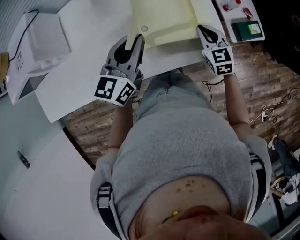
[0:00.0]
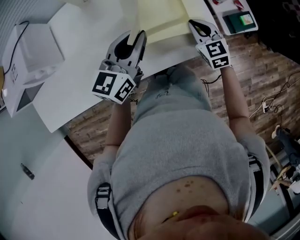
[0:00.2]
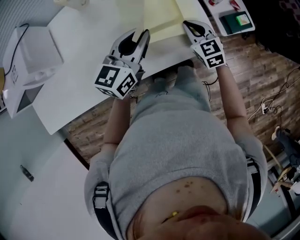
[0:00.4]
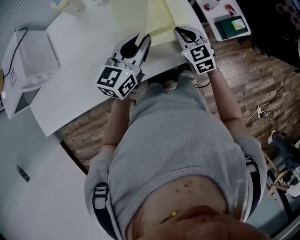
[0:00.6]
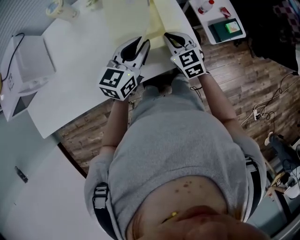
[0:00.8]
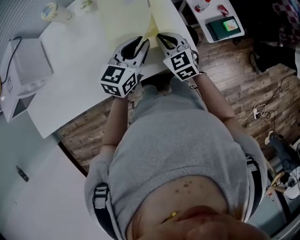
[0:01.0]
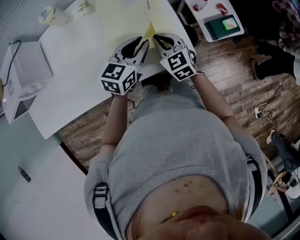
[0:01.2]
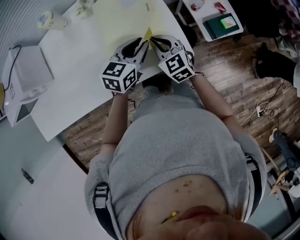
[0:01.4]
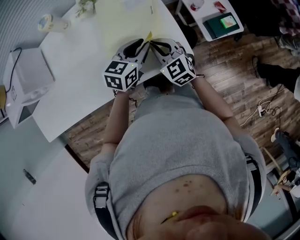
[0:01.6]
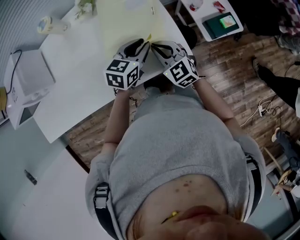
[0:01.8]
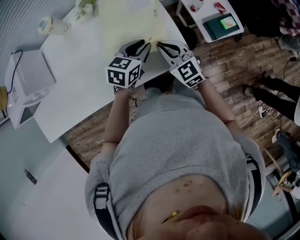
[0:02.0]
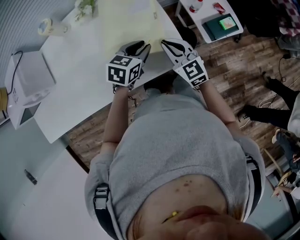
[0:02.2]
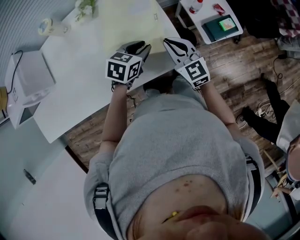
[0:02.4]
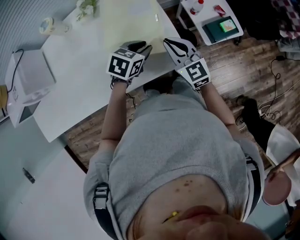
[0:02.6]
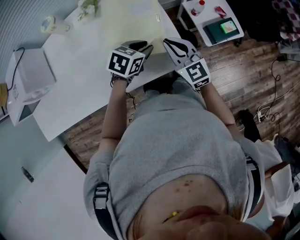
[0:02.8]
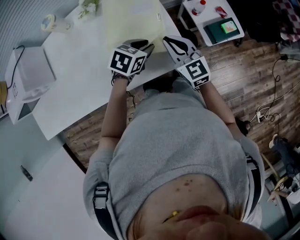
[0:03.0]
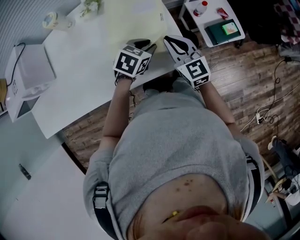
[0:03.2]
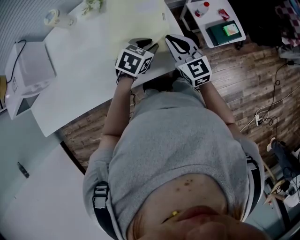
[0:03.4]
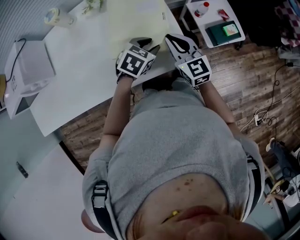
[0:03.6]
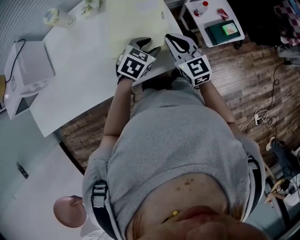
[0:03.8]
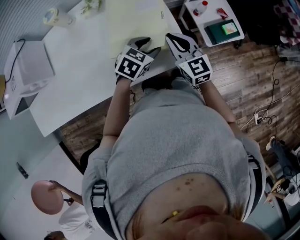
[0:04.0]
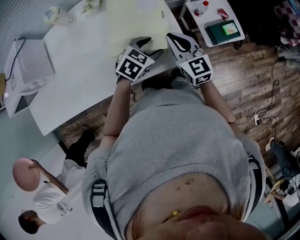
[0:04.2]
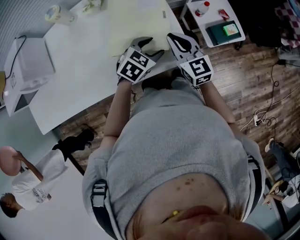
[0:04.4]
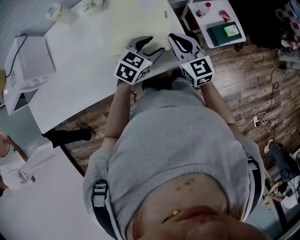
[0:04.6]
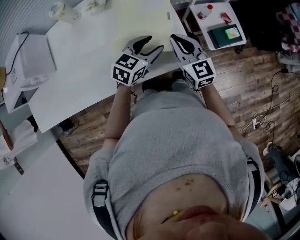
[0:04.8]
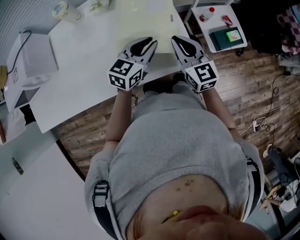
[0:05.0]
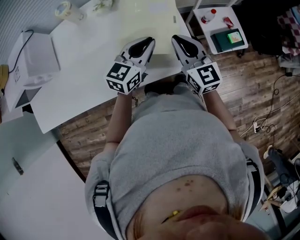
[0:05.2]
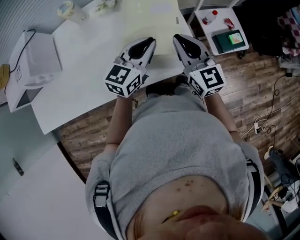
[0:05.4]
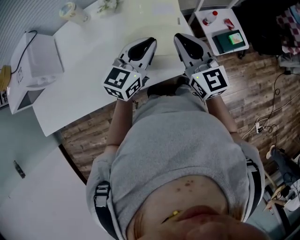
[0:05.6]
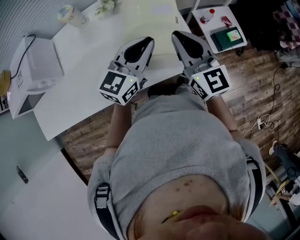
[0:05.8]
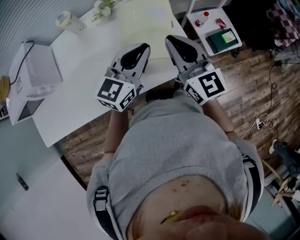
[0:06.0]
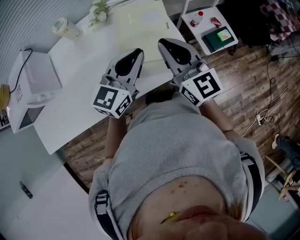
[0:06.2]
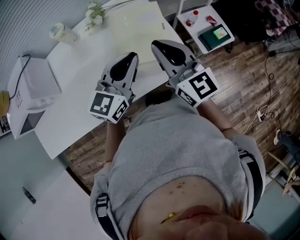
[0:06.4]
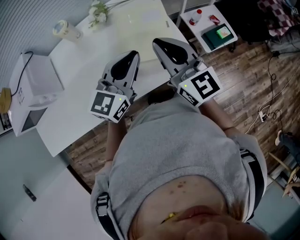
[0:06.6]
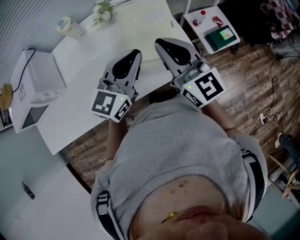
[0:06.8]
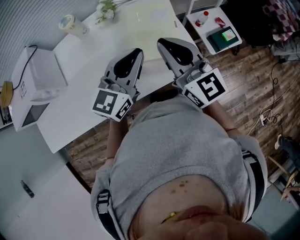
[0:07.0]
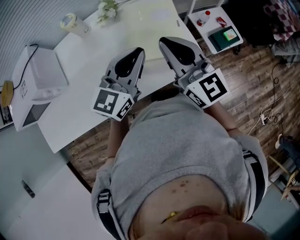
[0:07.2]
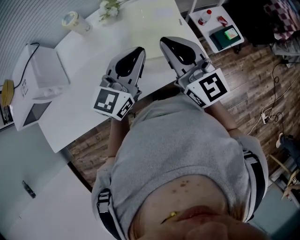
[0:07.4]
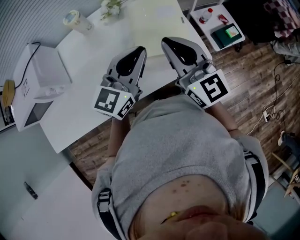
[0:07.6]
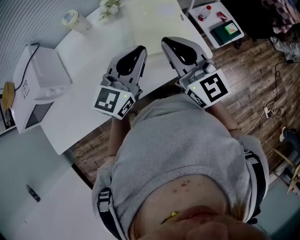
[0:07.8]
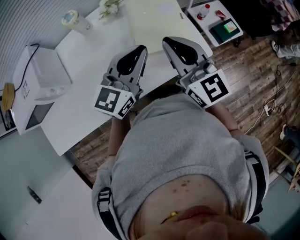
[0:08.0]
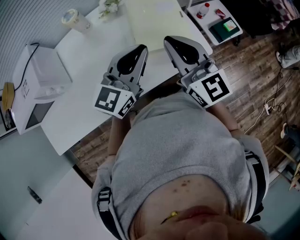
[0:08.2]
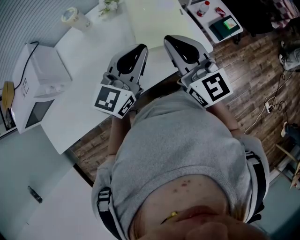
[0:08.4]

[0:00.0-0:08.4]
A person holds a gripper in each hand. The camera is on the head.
0.0 to 1.4 s: The left gripper is displaced to the right and downward by some 20 cm, and rotates about 20 degrees.
1.4 to 2.8 s: The right gripper moves to the right, about 5 cm. The left gripper ends up some 5 cm from where it was, and swivels about 30 degrees.
2.8 to 4.2 s: The left gripper opens up.
4.2 to 5.6 s: The left gripper goes roughly 15 cm upward and to the left, points its fingers approximately 40 degrees further upward, and closes its fingers, while the right gripper travels upward by some 10 cm.
5.6 to 7.0 s: Both grippers travel together upward and to the left, approximately 10 cm.
7.0 to 8.4 s: The right gripper changes place by about 5 cm.

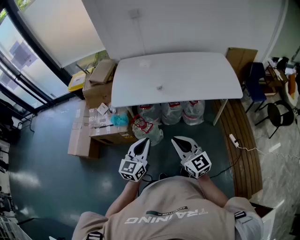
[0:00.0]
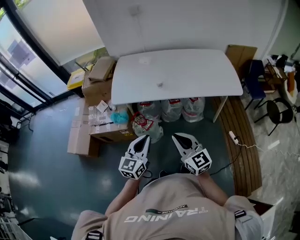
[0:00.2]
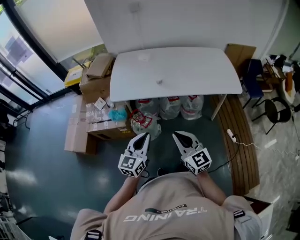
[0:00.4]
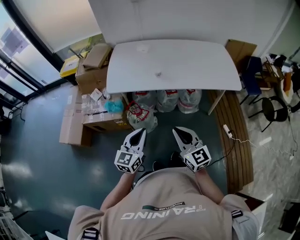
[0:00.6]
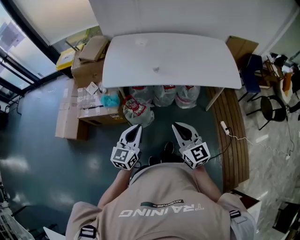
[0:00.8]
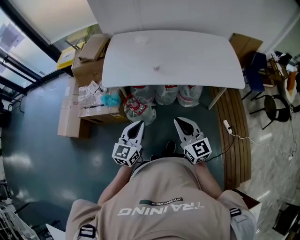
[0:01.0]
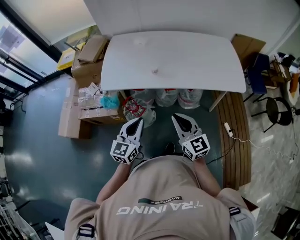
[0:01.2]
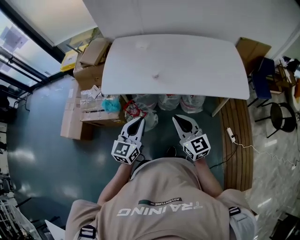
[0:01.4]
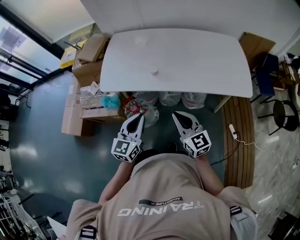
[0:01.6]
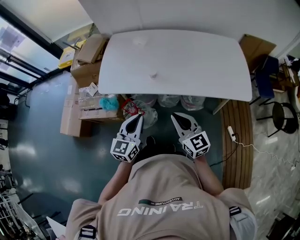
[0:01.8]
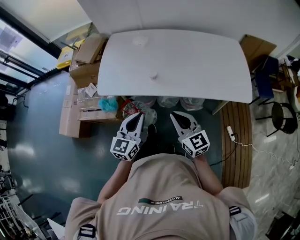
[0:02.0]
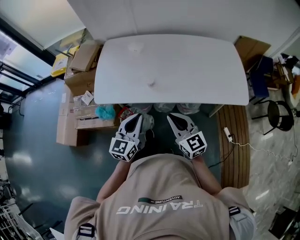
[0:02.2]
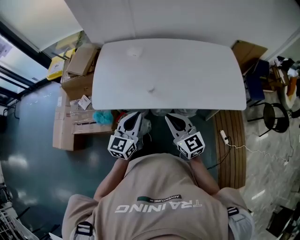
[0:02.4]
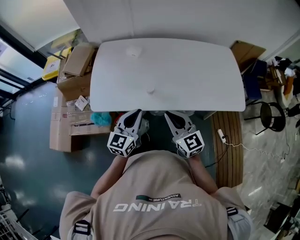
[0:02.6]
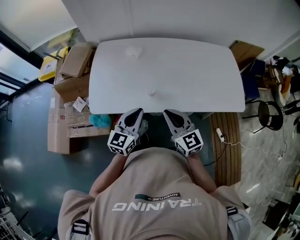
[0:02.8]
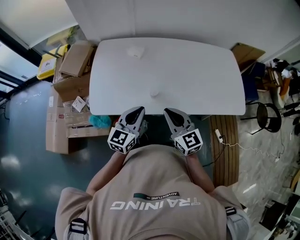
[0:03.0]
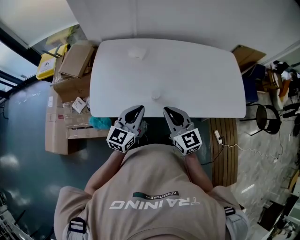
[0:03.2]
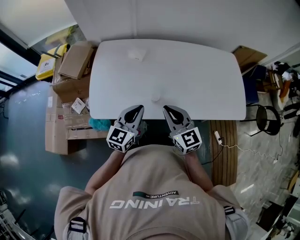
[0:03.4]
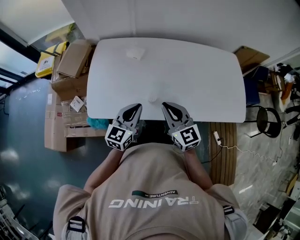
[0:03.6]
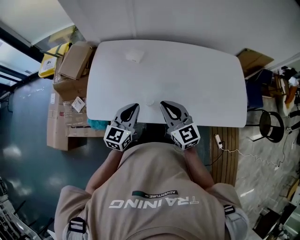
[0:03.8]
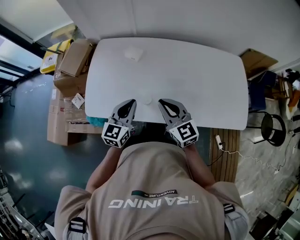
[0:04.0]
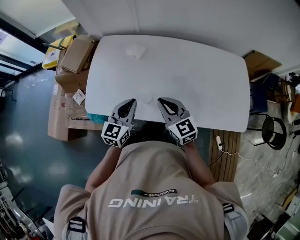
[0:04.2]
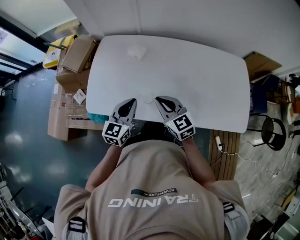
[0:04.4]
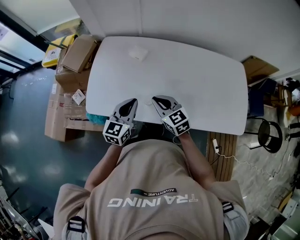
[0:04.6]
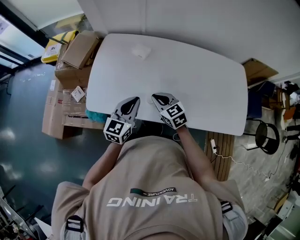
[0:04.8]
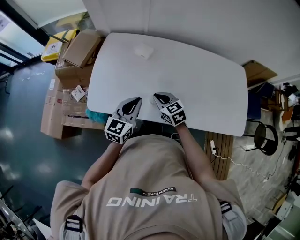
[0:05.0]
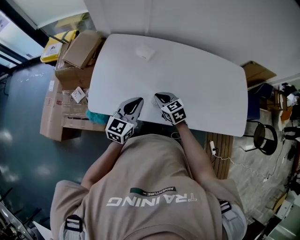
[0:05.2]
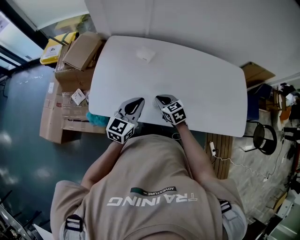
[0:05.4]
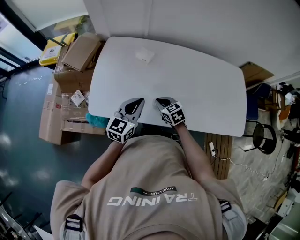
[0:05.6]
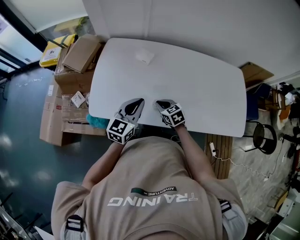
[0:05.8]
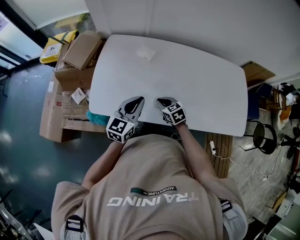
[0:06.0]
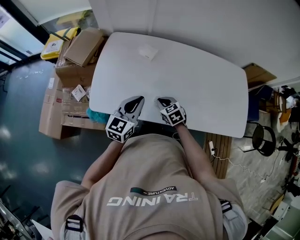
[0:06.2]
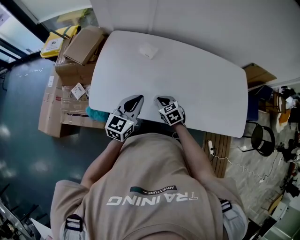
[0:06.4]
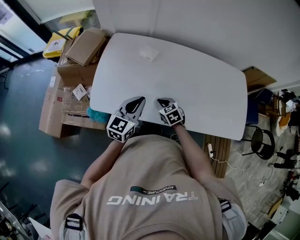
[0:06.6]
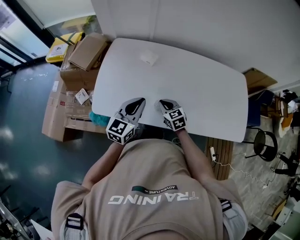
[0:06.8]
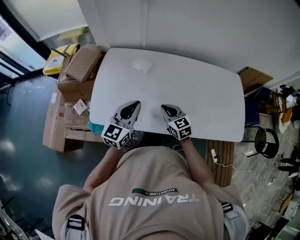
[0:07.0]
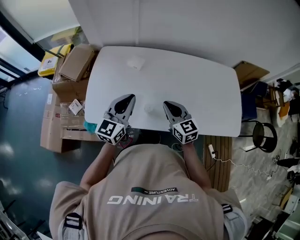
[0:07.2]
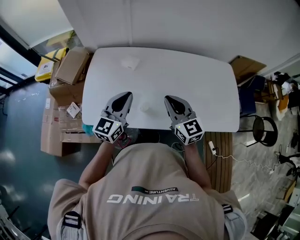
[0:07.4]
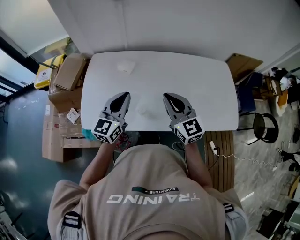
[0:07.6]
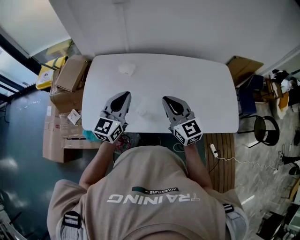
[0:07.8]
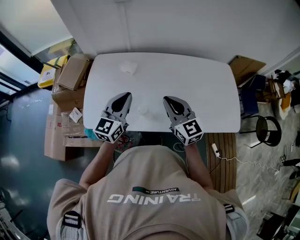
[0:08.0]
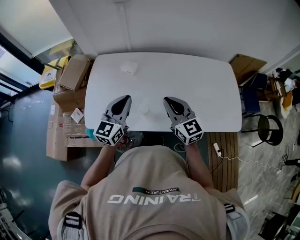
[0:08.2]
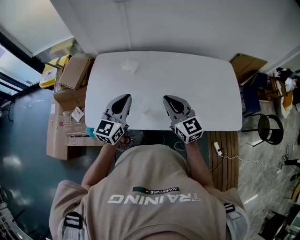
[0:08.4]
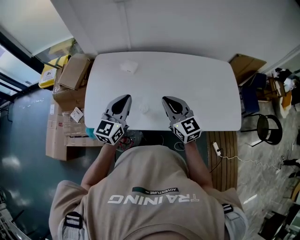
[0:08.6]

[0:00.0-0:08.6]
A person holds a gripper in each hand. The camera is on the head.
0.0 to 1.4 s: The right gripper heads forward and to the right, covering about 15 cm; the left gripper is displaced forward by about 15 cm.
1.4 to 2.8 s: Both grippers move forward, some 20 cm.
2.8 to 4.4 s: Both grippers move forward, roughly 10 cm.
4.4 to 5.8 s: The right gripper moves downward, approximately 15 cm, and rotates about 30 degrees.
5.8 to 7.2 s: The left gripper goes about 10 cm upward, while the right gripper is displaced upward by roughly 15 cm, and rotates approximately 30 degrees.
7.2 to 8.6 s: The right gripper shifts approximately 5 cm upward.

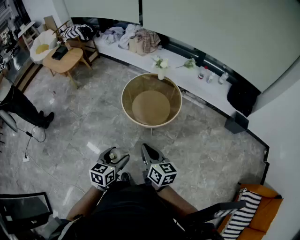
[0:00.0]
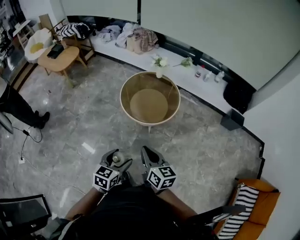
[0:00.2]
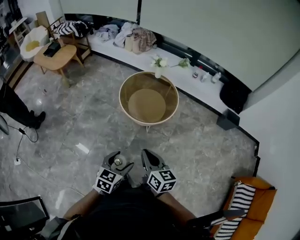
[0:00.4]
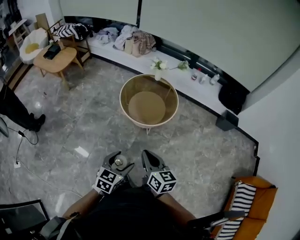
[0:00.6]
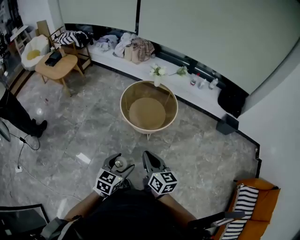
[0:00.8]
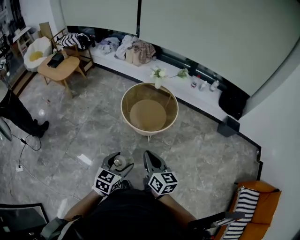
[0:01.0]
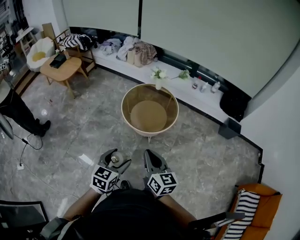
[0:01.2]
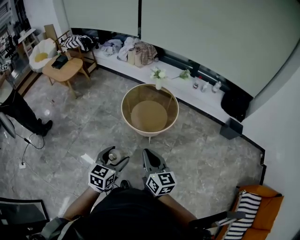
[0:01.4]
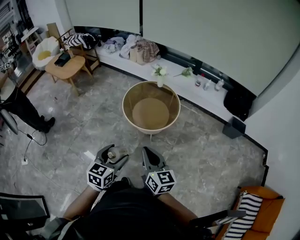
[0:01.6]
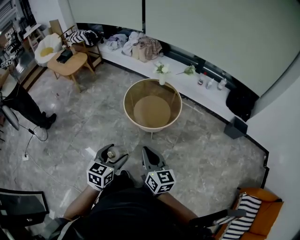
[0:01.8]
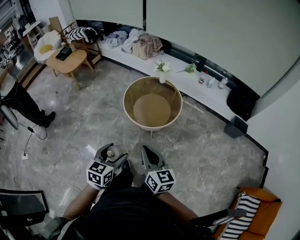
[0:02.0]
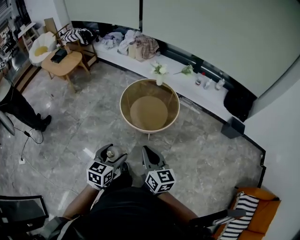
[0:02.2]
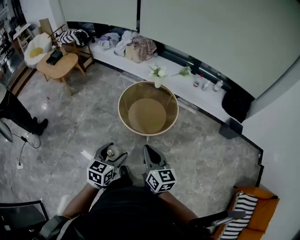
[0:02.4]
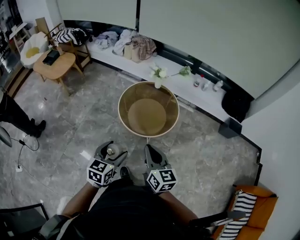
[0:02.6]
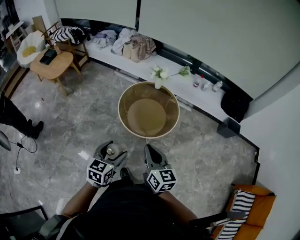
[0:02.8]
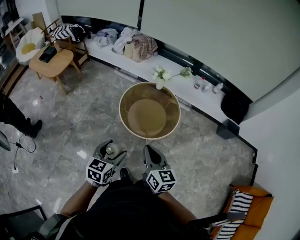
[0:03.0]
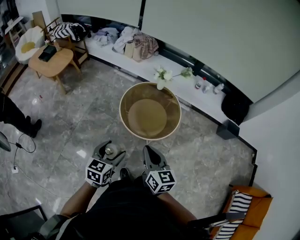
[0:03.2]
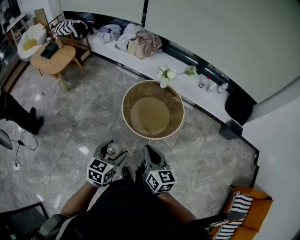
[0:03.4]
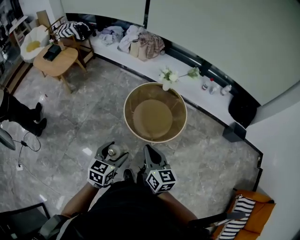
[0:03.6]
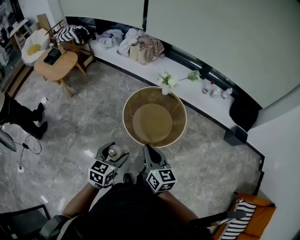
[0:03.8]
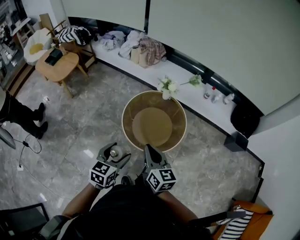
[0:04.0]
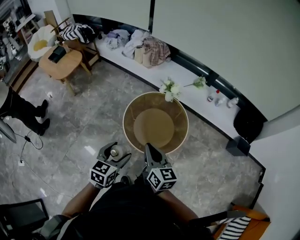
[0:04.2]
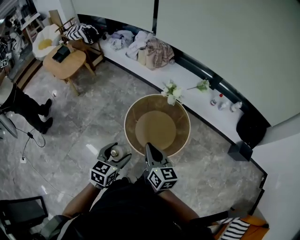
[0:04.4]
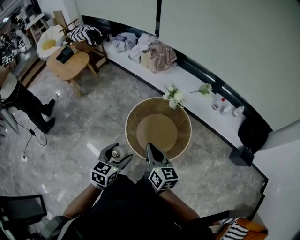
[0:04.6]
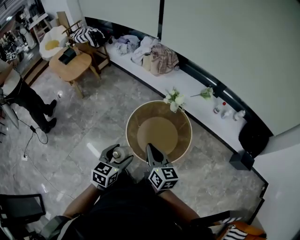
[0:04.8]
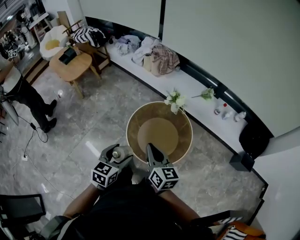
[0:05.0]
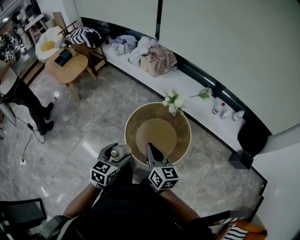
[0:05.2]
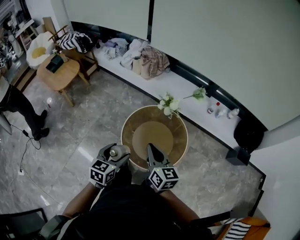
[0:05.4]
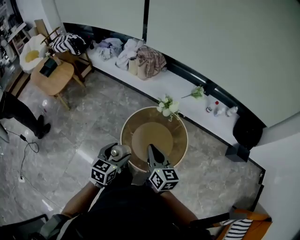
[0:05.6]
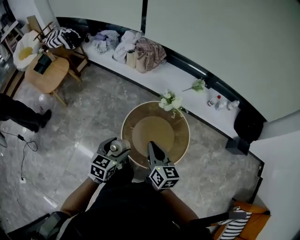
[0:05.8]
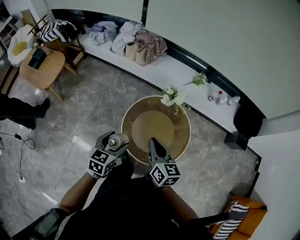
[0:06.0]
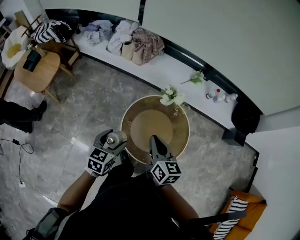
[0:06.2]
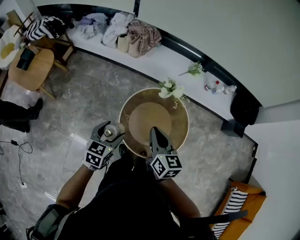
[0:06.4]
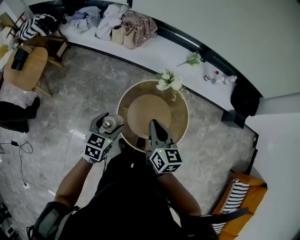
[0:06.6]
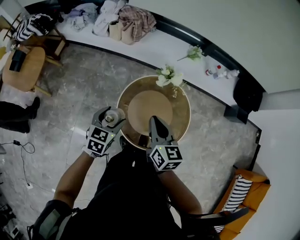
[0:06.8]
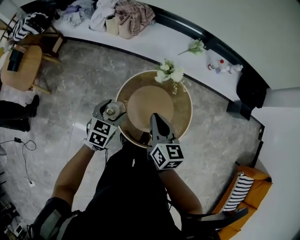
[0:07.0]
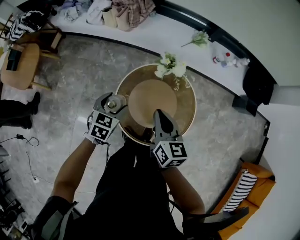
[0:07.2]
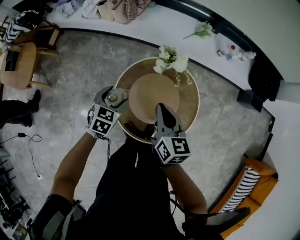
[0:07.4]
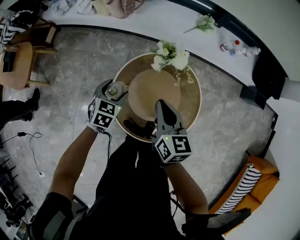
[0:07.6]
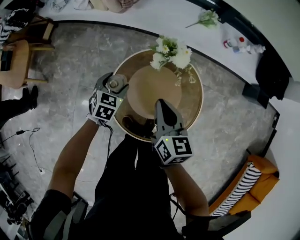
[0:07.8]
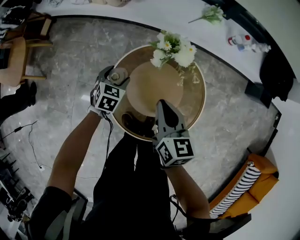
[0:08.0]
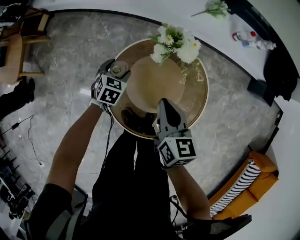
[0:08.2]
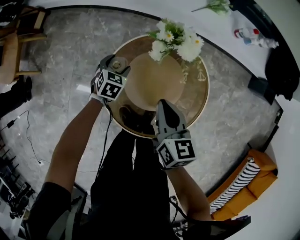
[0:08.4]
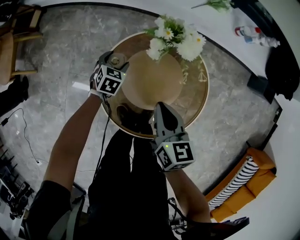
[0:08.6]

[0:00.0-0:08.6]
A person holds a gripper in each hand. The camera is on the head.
0.0 to 1.4 s: The right gripper goes approximately 5 cm upward and backward, and goes to the left and returns, roughly 10 cm each way. The left gripper moves upward, roughly 5 cm.
1.4 to 2.8 s: The right gripper is displaced forward by about 15 cm. Meanwhile the left gripper goes about 15 cm forward and to the left.
2.8 to 4.4 s: Both grippers move forward, about 20 cm.
4.4 to 5.8 s: The grippers both shift forward by approximately 15 cm.
5.8 to 7.2 s: The grippers both shift forward and downward by about 20 cm.
7.2 to 8.6 s: The left gripper moves downward and forward, some 30 cm. Meanwhile the right gripper shifts approximately 15 cm downward.
